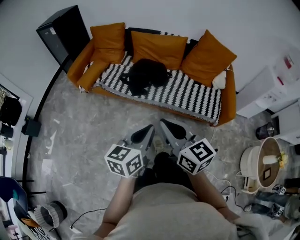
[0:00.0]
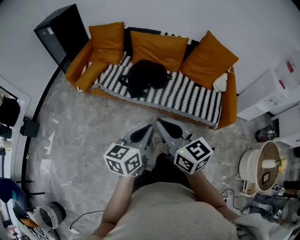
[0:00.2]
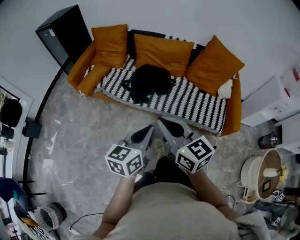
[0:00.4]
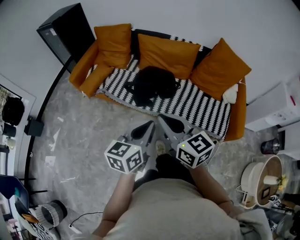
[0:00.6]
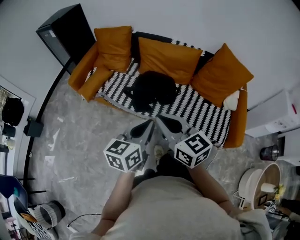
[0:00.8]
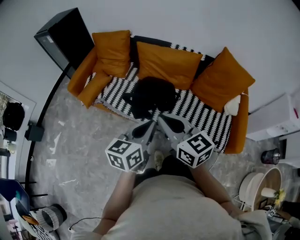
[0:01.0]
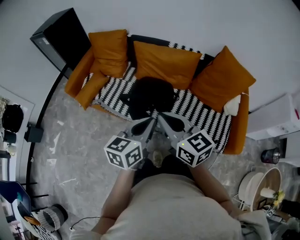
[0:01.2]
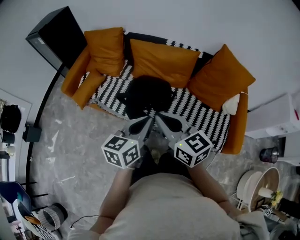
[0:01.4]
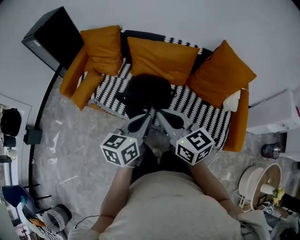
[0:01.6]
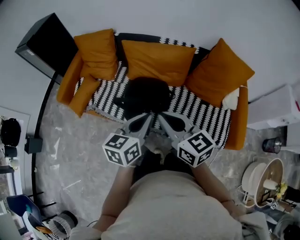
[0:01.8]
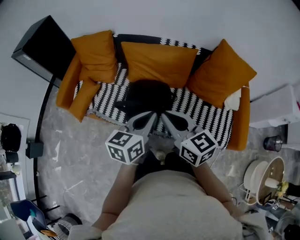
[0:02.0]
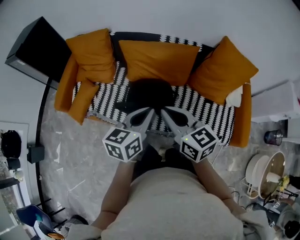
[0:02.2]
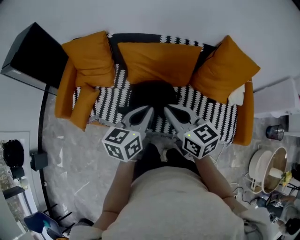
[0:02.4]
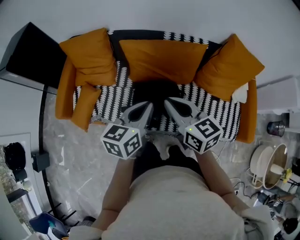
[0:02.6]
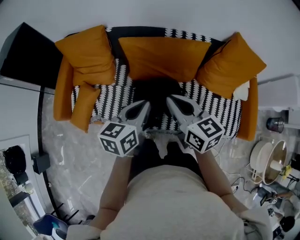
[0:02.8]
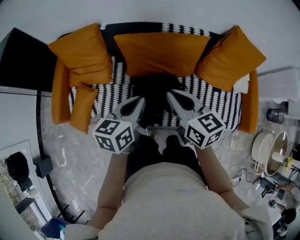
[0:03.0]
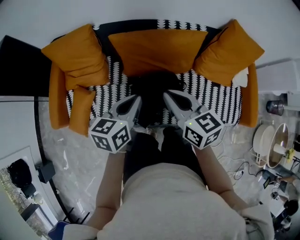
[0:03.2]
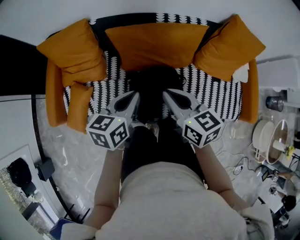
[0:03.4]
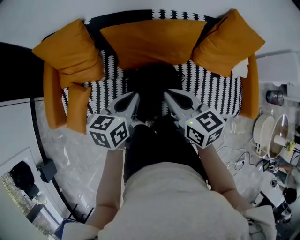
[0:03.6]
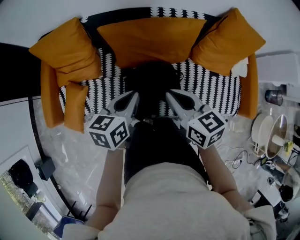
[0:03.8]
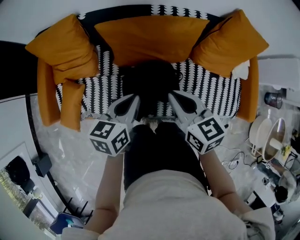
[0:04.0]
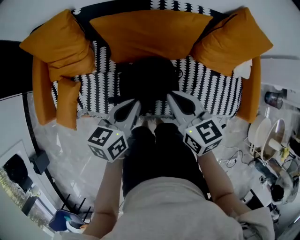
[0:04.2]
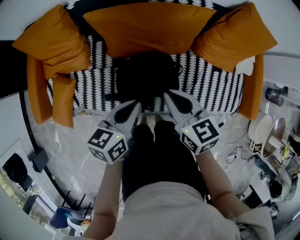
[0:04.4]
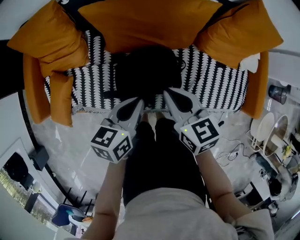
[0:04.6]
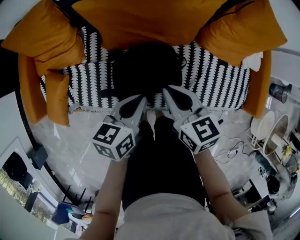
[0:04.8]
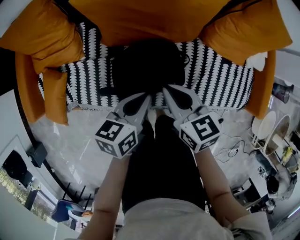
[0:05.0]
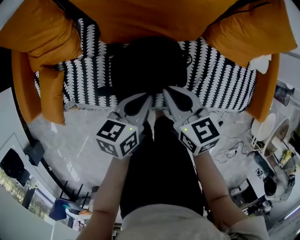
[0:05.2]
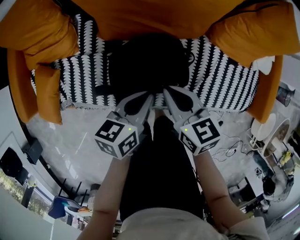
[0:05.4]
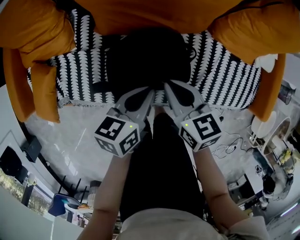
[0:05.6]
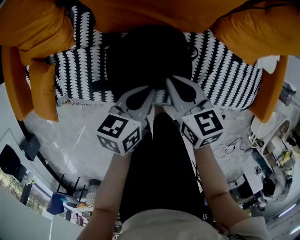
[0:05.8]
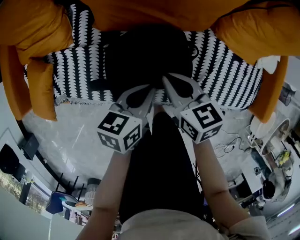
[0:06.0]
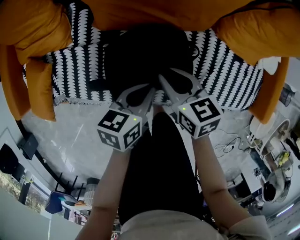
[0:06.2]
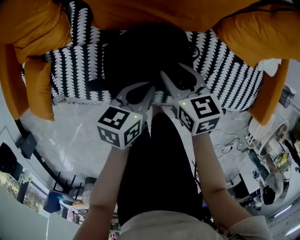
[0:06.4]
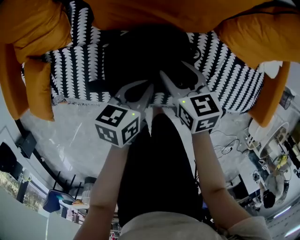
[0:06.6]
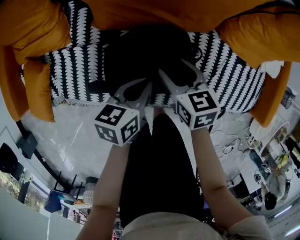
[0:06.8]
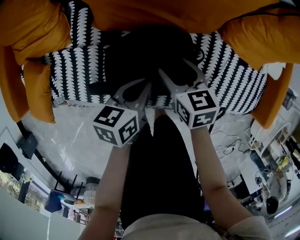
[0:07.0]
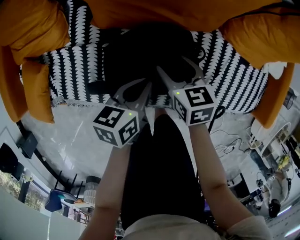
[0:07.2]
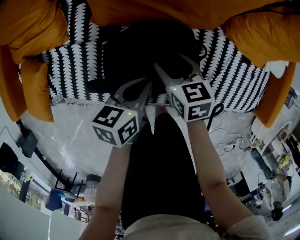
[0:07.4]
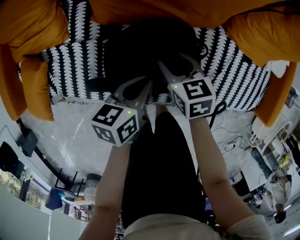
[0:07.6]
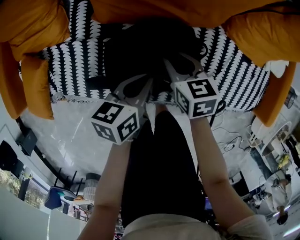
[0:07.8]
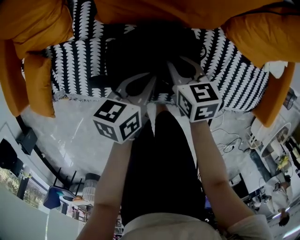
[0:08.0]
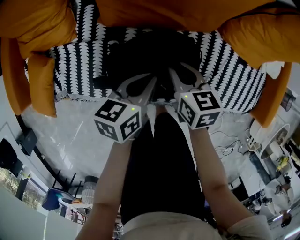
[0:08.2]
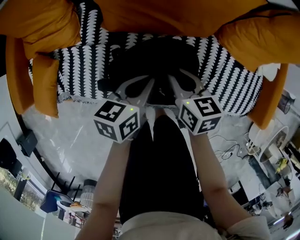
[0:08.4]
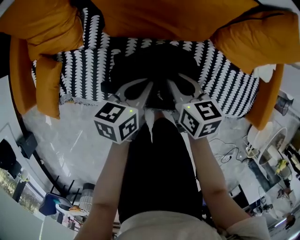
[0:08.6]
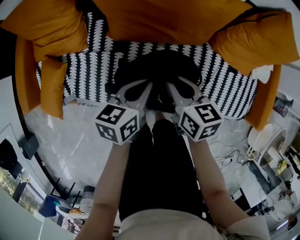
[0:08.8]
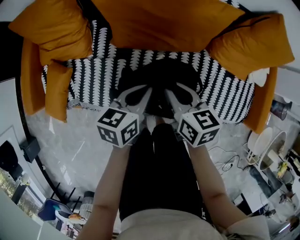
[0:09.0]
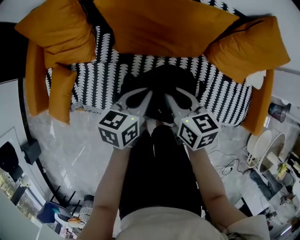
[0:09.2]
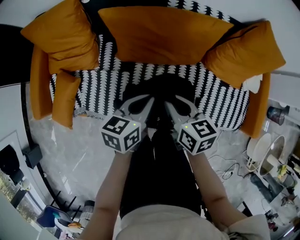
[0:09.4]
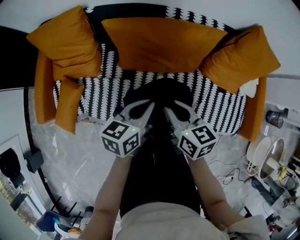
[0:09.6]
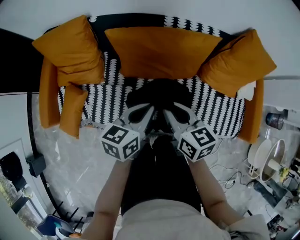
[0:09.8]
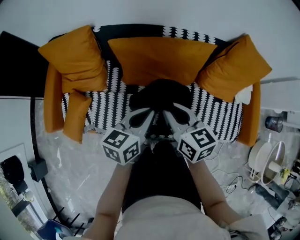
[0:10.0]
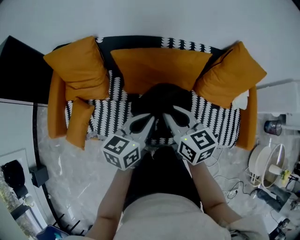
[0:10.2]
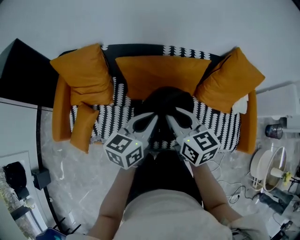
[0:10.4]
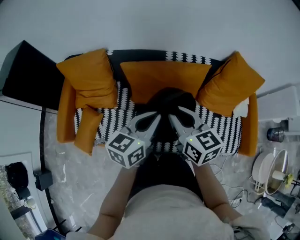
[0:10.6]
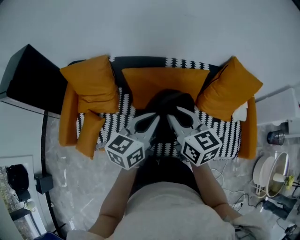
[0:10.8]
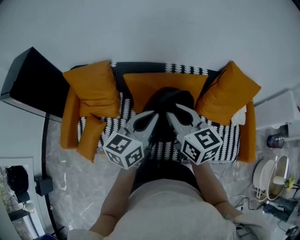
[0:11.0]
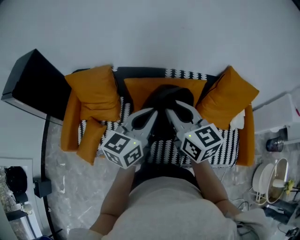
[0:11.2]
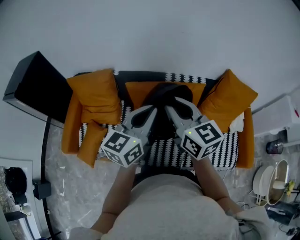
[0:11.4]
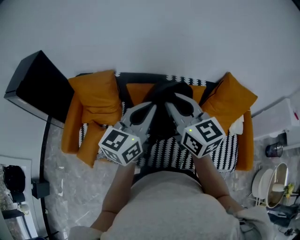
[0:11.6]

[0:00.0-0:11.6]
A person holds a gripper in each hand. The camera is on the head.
0.0 to 1.4 s: The grippers both shift forward by about 35 cm.
1.4 to 2.8 s: The left gripper moves forward and to the left, some 30 cm, while the right gripper is displaced forward by about 25 cm.
2.8 to 4.4 s: The grippers both shift downward by some 15 cm.
4.4 to 5.8 s: Both grippers move downward, approximately 20 cm.
5.8 to 7.2 s: The left gripper moves downward, roughly 5 cm, while the right gripper is displaced downward by about 10 cm, and opens.
7.2 to 8.8 s: The two grippers go roughly 10 cm upward. The right gripper closes its fingers.
8.8 to 10.2 s: The grippers both shift upward by about 25 cm.
10.2 to 11.6 s: Both grippers travel together upward, roughly 20 cm. The left gripper changes its angle by about 30 degrees, while the right gripper rotates approximately 20 degrees.

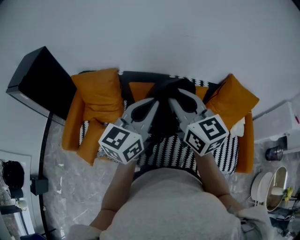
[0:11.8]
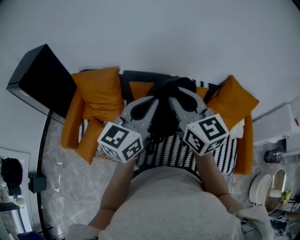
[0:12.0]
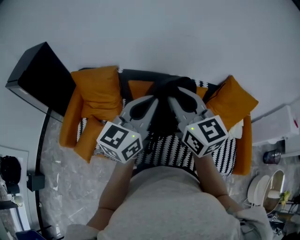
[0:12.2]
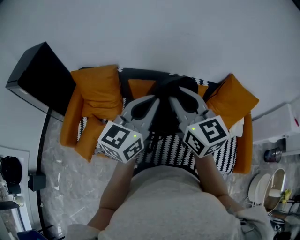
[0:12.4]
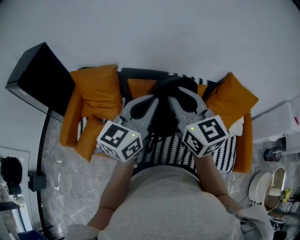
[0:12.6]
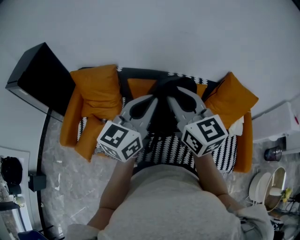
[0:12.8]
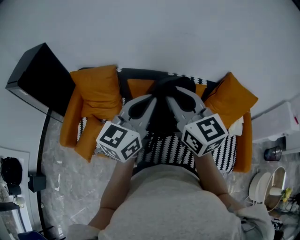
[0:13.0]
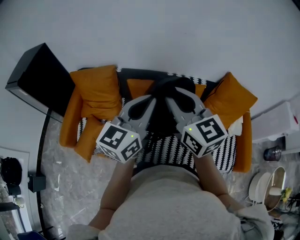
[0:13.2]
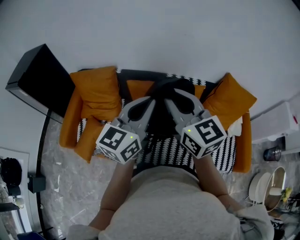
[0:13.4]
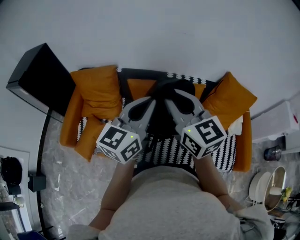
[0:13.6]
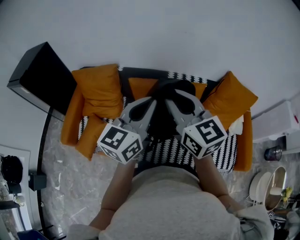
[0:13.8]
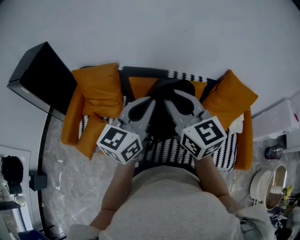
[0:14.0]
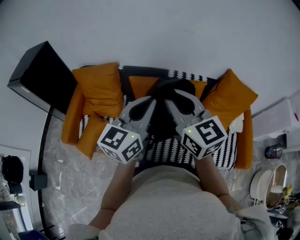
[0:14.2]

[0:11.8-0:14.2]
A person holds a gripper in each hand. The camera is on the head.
11.8 to 14.2 s: The grippers stay close to where they were, moving slightly.

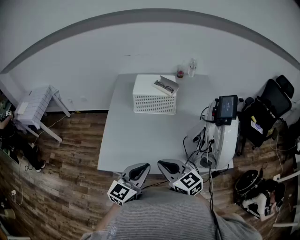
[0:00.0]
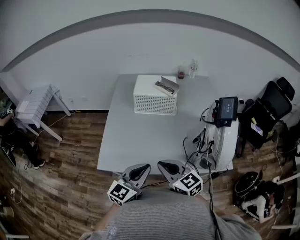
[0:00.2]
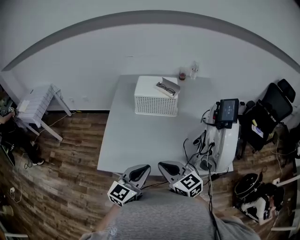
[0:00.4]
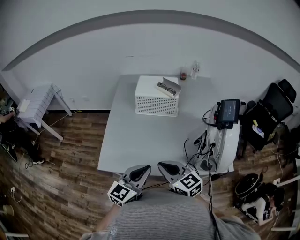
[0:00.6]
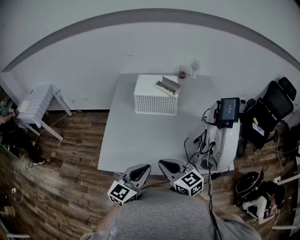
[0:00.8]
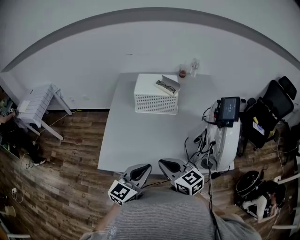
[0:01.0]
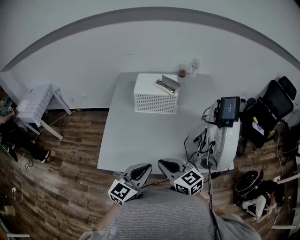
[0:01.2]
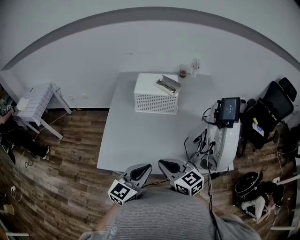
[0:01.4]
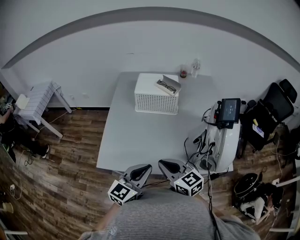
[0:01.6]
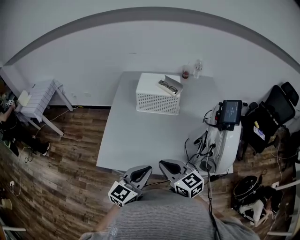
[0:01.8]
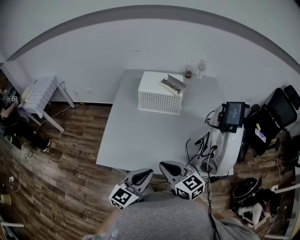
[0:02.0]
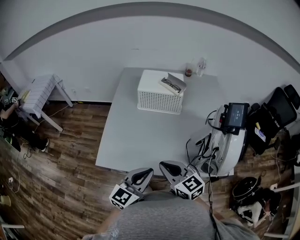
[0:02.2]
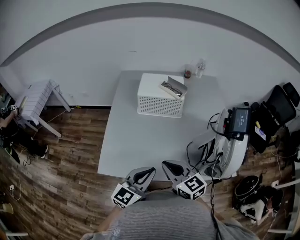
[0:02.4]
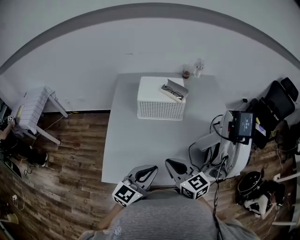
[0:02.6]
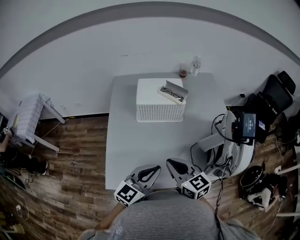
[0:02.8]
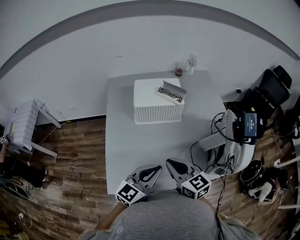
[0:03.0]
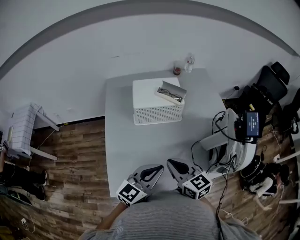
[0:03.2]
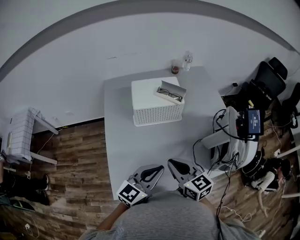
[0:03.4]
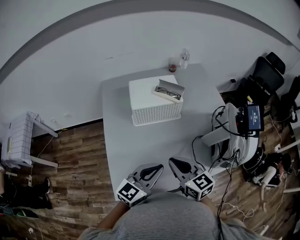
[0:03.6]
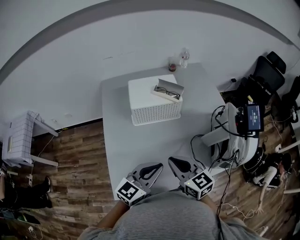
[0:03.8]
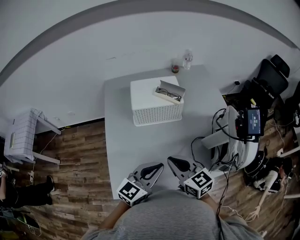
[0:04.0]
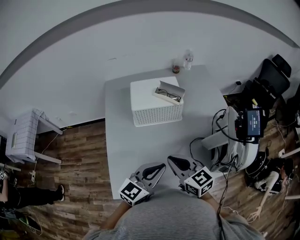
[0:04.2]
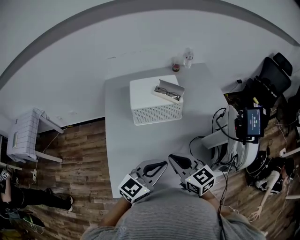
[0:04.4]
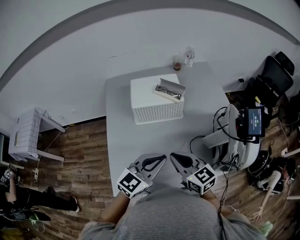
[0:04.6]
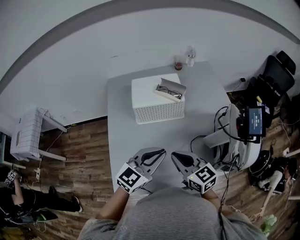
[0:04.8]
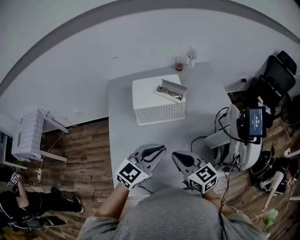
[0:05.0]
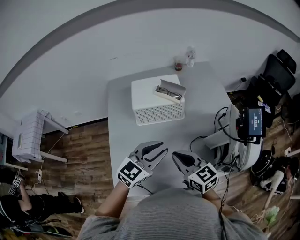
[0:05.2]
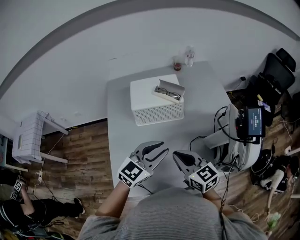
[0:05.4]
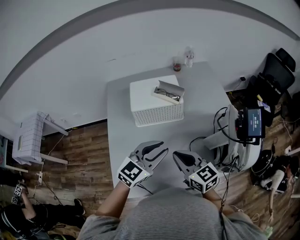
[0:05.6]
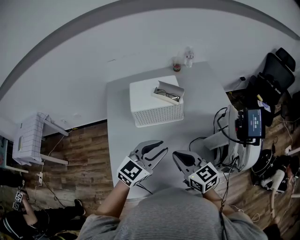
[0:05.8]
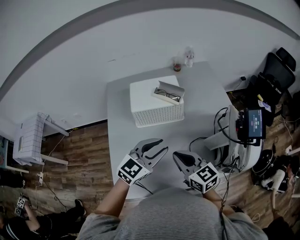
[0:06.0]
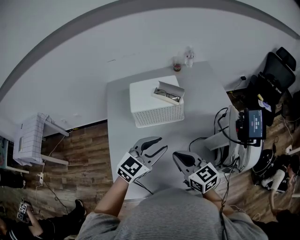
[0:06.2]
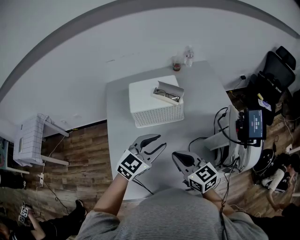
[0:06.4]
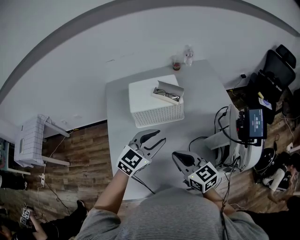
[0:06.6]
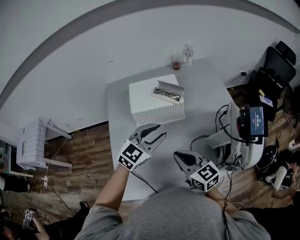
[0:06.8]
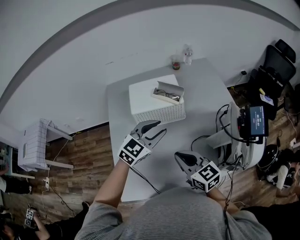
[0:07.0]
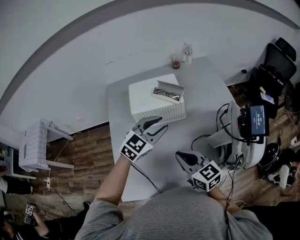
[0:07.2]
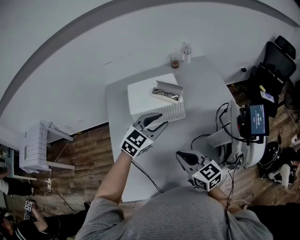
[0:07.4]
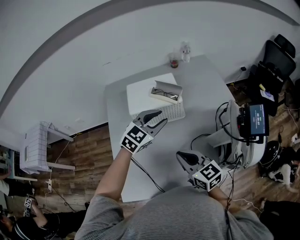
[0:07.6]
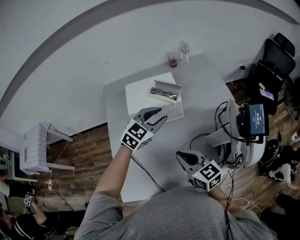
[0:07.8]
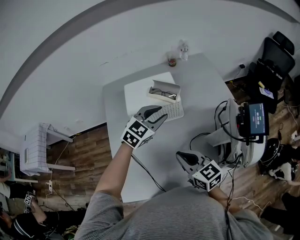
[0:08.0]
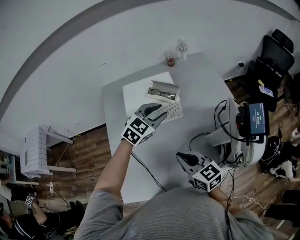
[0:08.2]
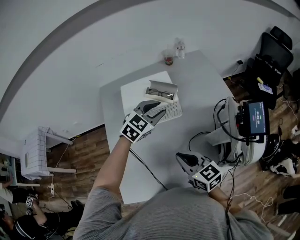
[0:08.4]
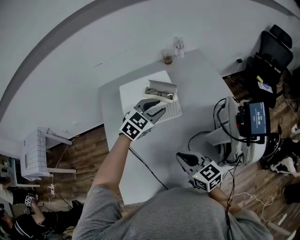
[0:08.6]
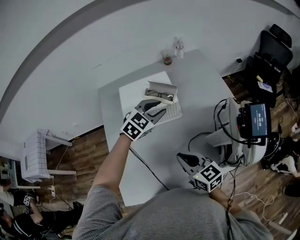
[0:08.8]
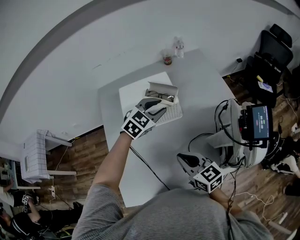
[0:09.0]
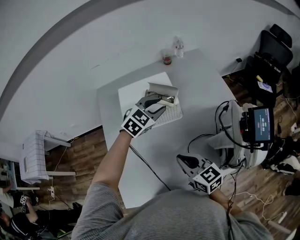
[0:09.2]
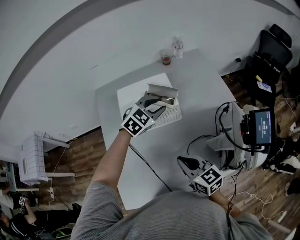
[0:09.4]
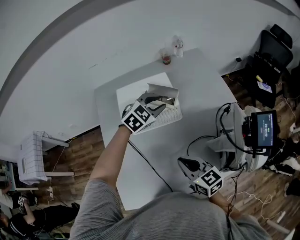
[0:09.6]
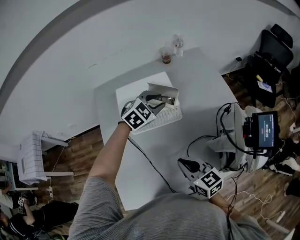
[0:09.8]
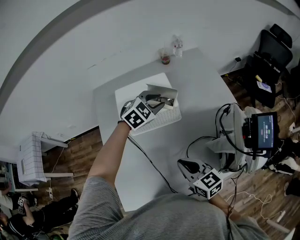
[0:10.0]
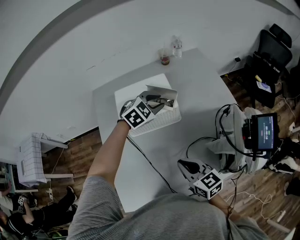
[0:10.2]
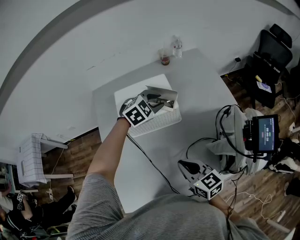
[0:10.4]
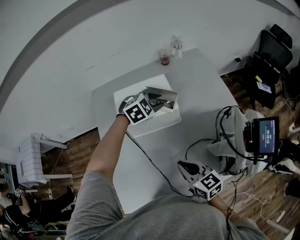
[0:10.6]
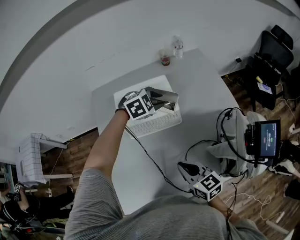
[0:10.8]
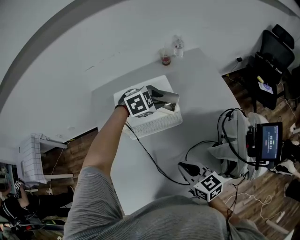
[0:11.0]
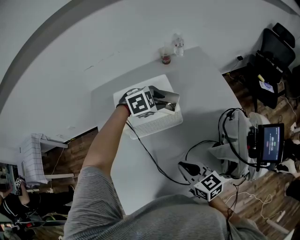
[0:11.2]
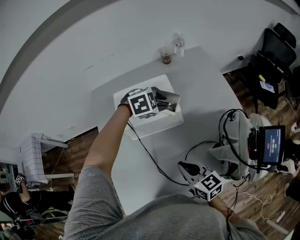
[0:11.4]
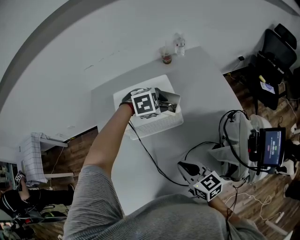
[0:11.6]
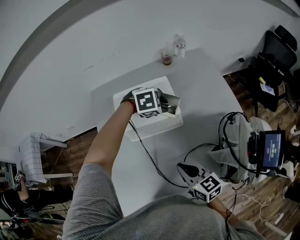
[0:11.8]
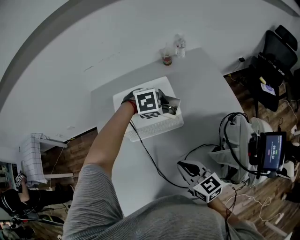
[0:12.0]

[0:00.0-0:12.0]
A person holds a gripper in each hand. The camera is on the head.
0.0 to 1.6 s: The grippers stay close to where they were, moving slightly.
1.6 to 3.0 s: Both grippers move forward, about 15 cm.
3.0 to 4.4 s: The grippers move only a little.
4.4 to 6.0 s: The left gripper heads forward, covering about 10 cm, and opens its fingers.
6.0 to 7.6 s: The left gripper moves forward, about 15 cm.
7.6 to 9.0 s: The left gripper goes about 10 cm forward.
9.0 to 10.4 s: The left gripper heads forward, covering approximately 5 cm.
10.4 to 12.0 s: The left gripper turns by about 30 degrees.
